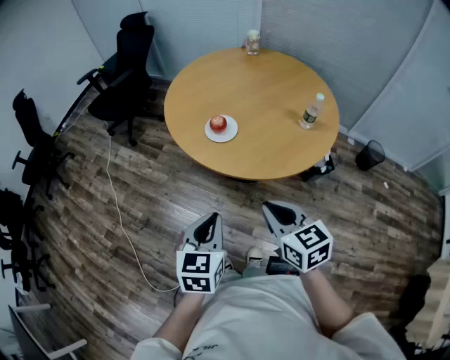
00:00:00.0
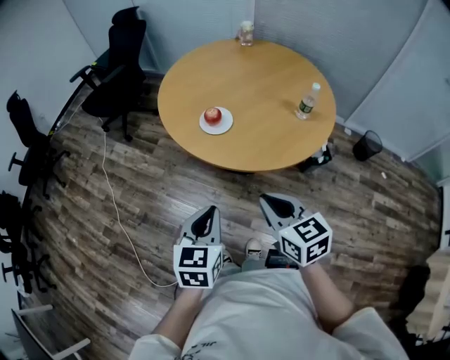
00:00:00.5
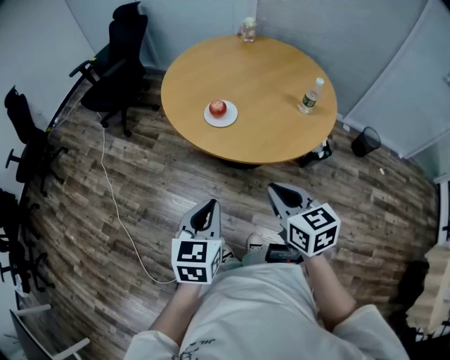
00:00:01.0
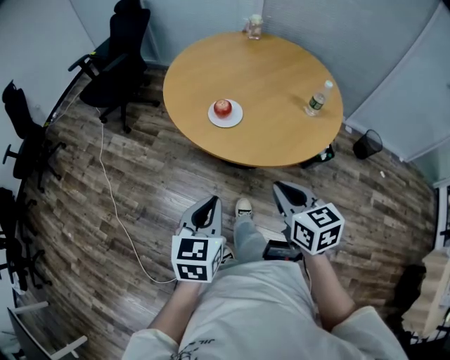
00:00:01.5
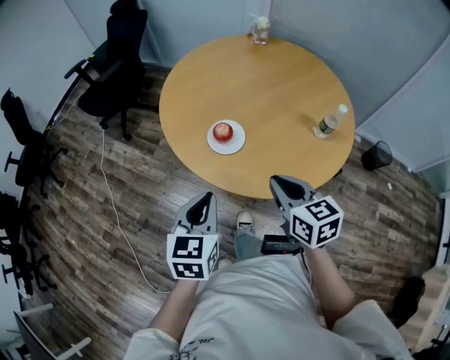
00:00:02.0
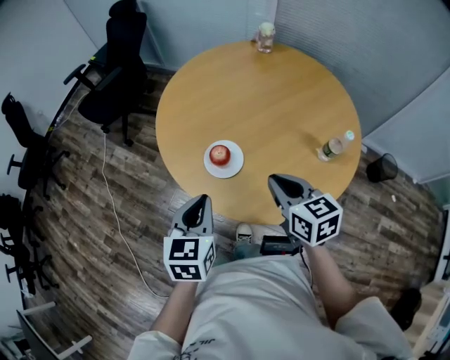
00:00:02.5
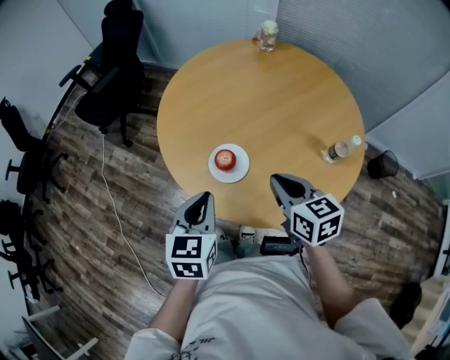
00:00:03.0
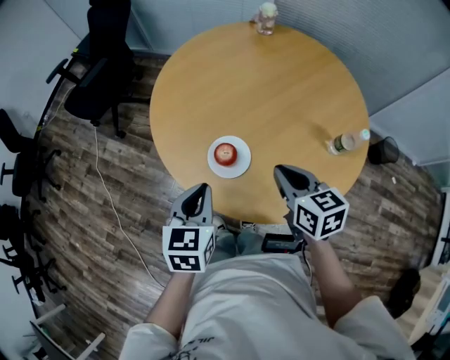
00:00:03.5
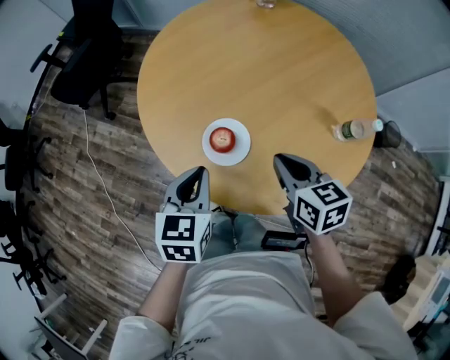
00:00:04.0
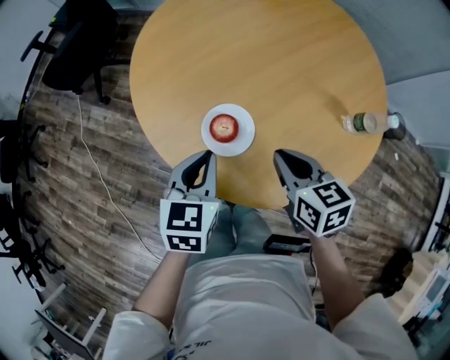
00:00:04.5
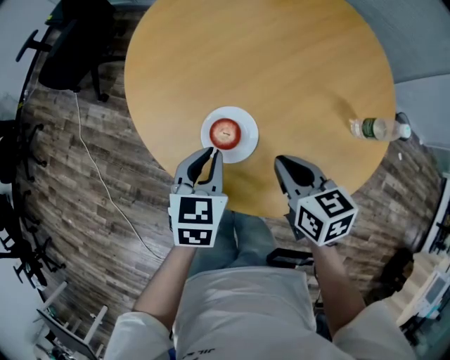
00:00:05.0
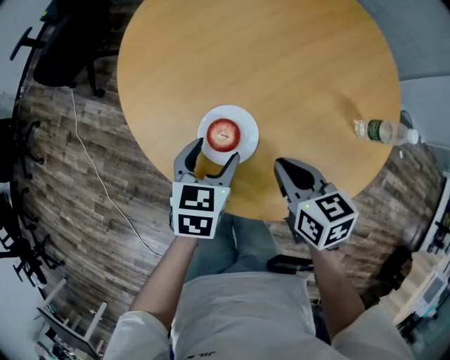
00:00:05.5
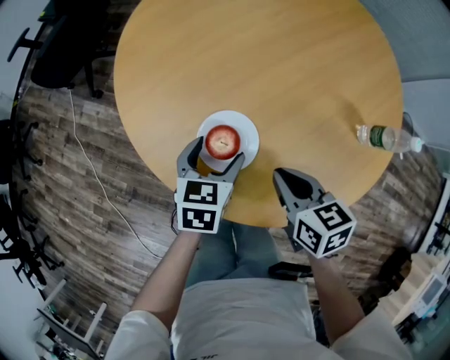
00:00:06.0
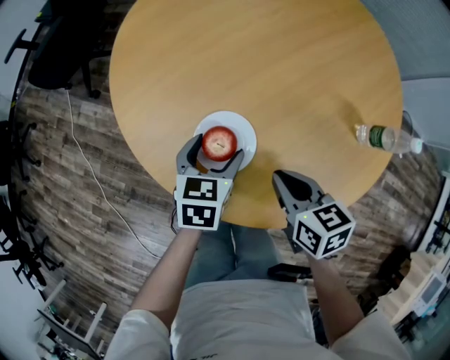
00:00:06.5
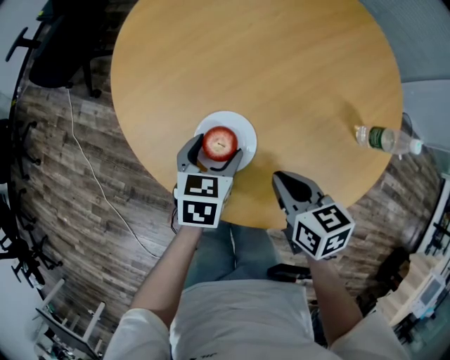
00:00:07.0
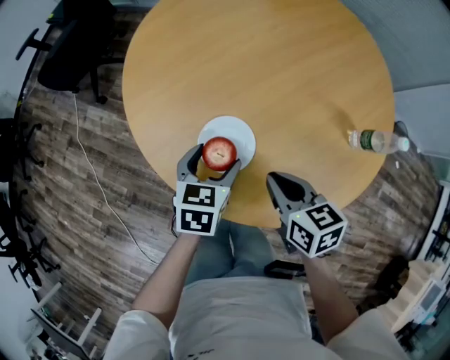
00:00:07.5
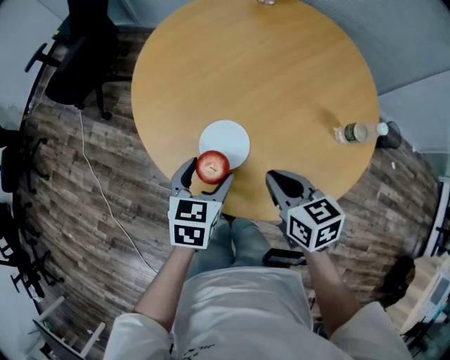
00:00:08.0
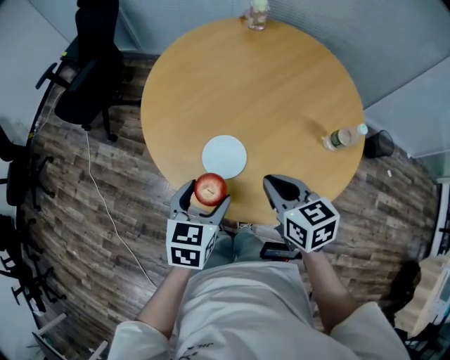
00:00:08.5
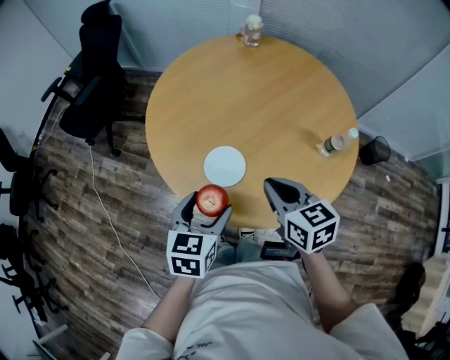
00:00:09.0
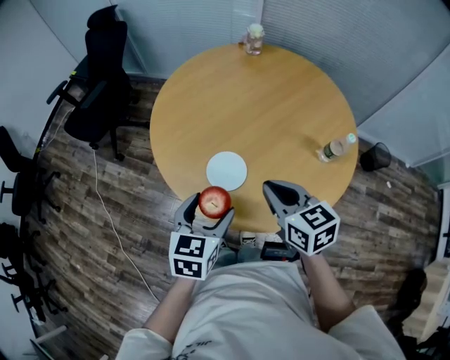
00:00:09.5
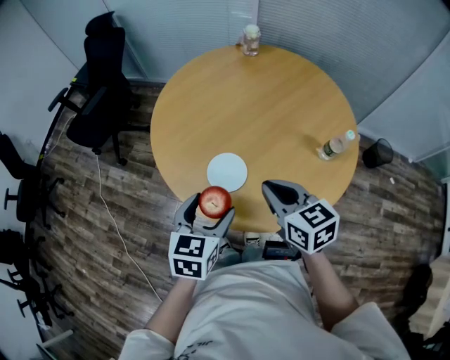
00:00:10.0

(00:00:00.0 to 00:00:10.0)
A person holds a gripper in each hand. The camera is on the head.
00:00:00.0 - 00:00:02.0: Both grippers travel together forward, approximately 15 cm.
00:00:02.0 - 00:00:04.0: The left gripper shifts roughly 15 cm forward. The right gripper goes about 15 cm forward and downward.
00:00:04.0 - 00:00:06.0: The right gripper goes about 10 cm downward. The left gripper goes roughly 15 cm downward and forward, and opens.
00:00:06.0 - 00:00:08.0: Both grippers move upward, about 5 cm.
00:00:08.0 - 00:00:10.0: The right gripper moves upward, approximately 10 cm; the left gripper heads upward and backward, covering about 10 cm.

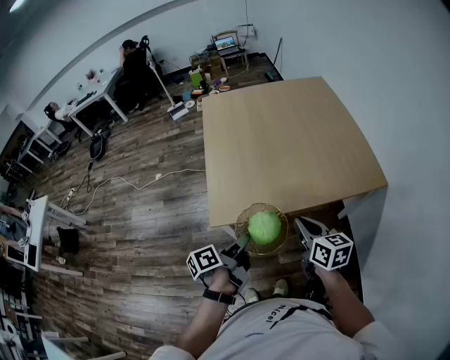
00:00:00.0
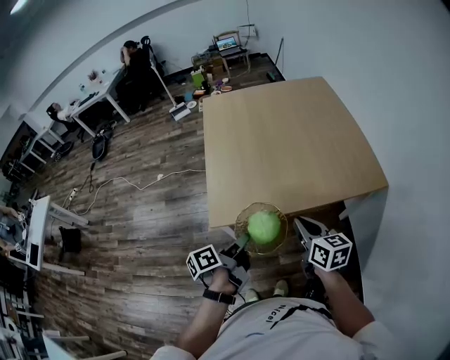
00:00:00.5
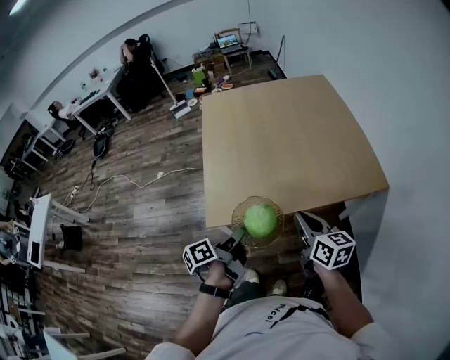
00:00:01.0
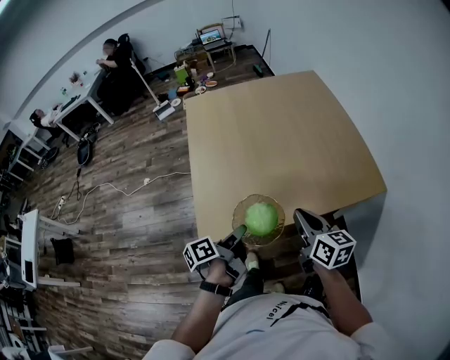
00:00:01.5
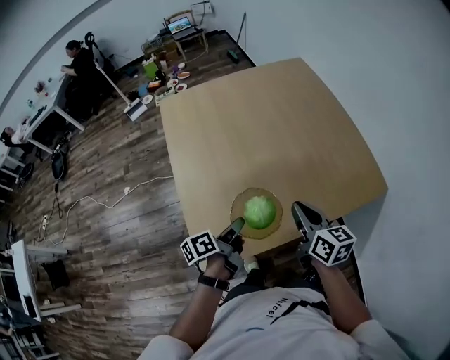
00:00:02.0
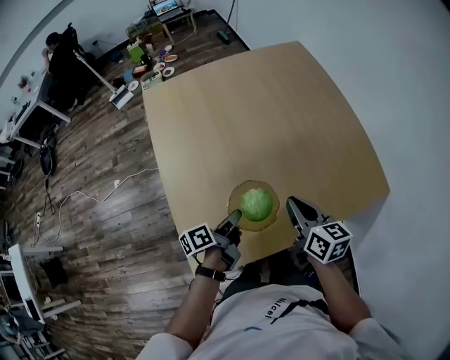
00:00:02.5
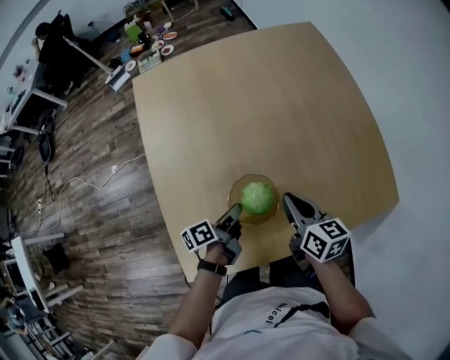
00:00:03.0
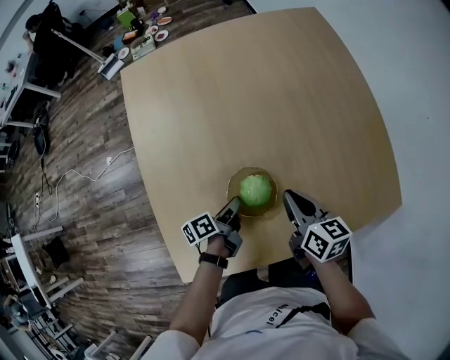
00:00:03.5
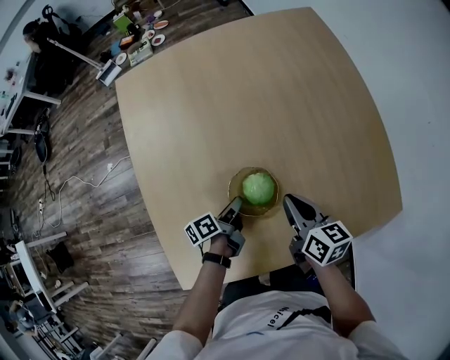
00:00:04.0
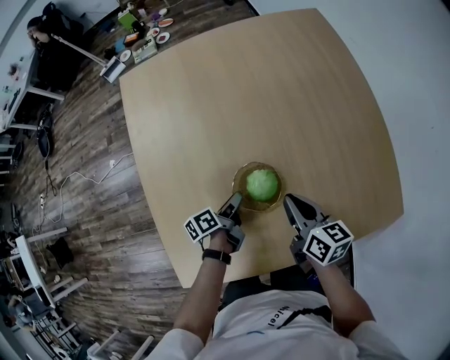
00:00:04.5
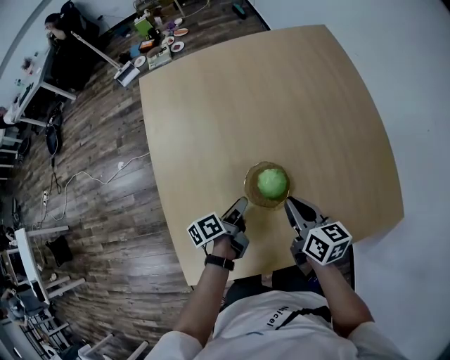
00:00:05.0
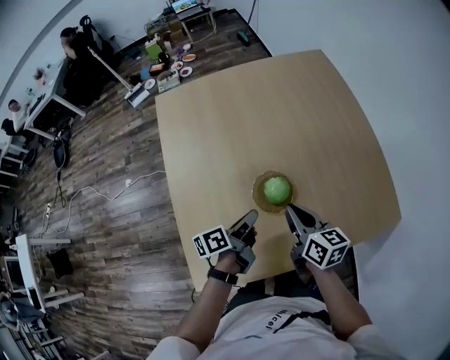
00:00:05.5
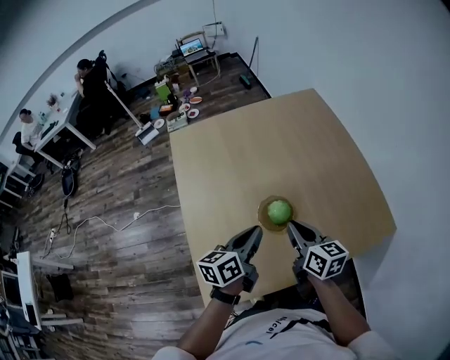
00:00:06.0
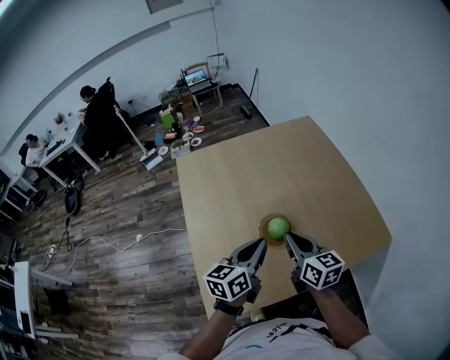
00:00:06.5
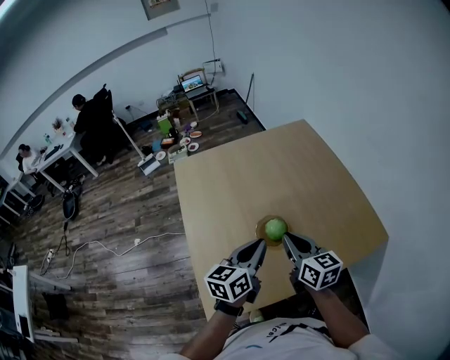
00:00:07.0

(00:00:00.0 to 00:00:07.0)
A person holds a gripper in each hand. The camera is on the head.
00:00:00.0 - 00:00:02.0: The right gripper moves roughly 20 cm.
00:00:02.0 - 00:00:03.5: The right gripper moves approximately 25 cm.
00:00:05.0 - 00:00:07.0: The right gripper travels upward by approximately 15 cm, and rotates about 20 degrees.

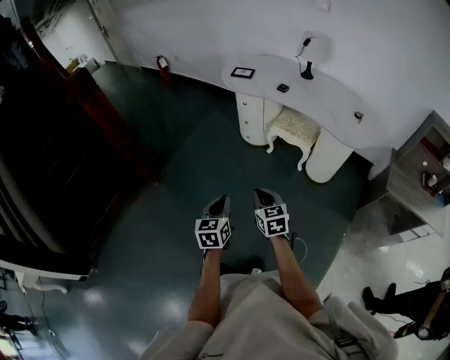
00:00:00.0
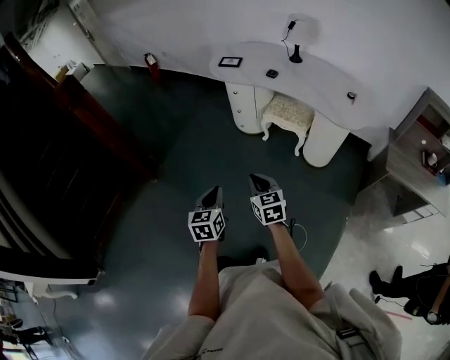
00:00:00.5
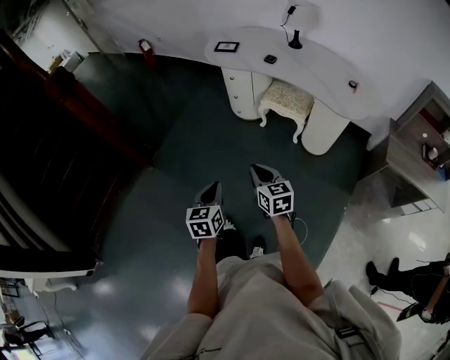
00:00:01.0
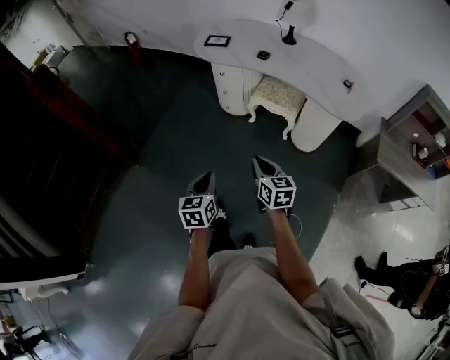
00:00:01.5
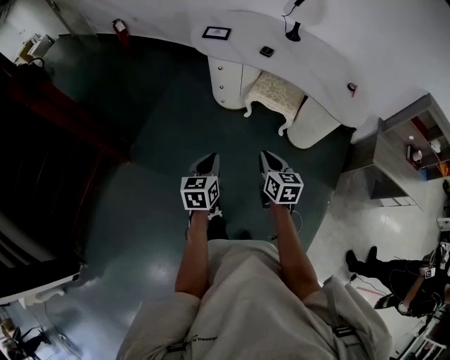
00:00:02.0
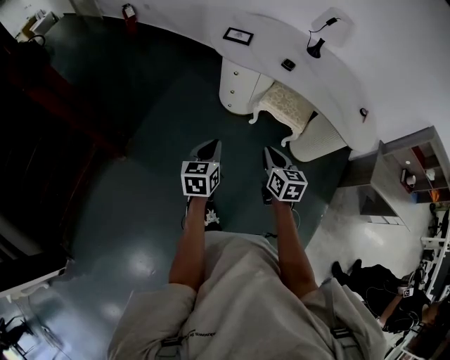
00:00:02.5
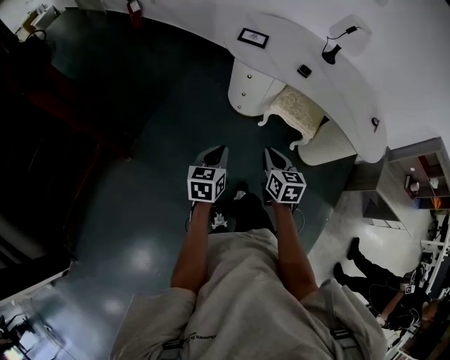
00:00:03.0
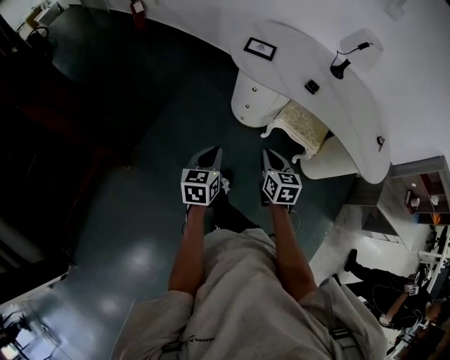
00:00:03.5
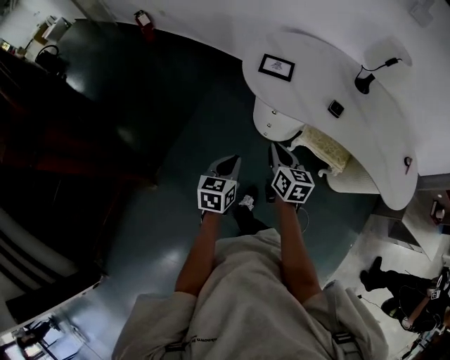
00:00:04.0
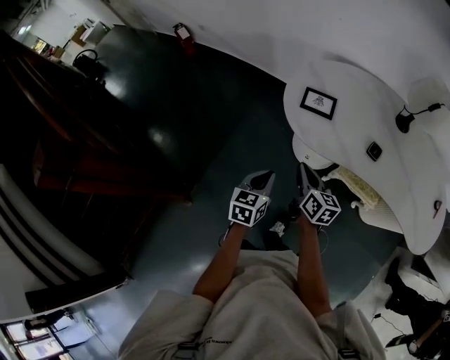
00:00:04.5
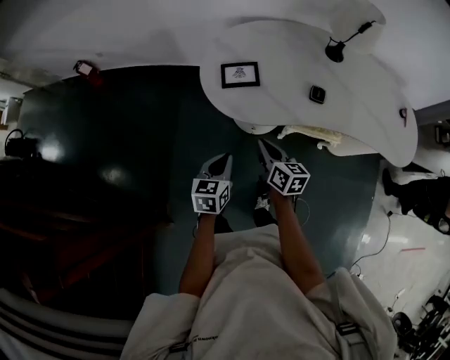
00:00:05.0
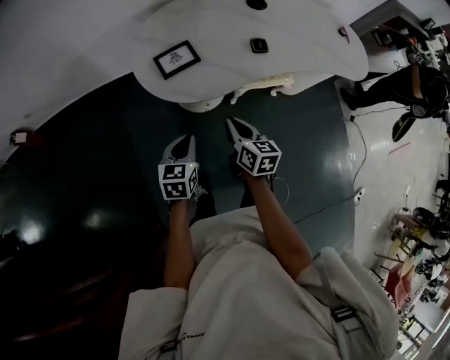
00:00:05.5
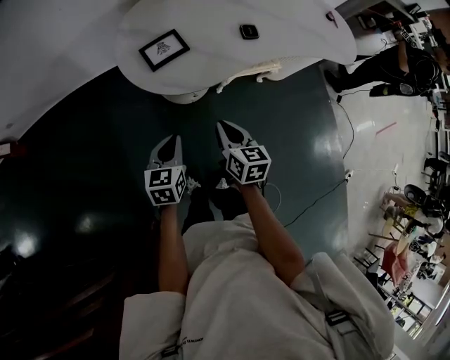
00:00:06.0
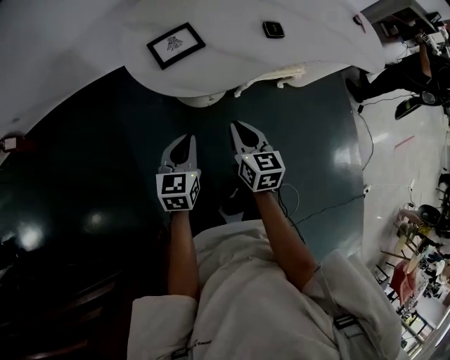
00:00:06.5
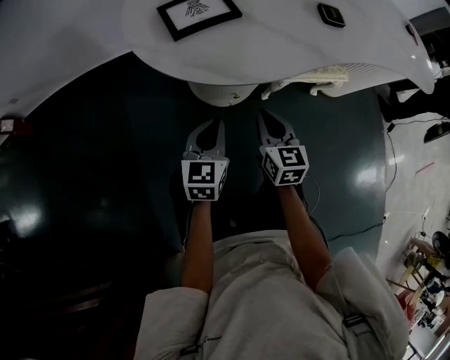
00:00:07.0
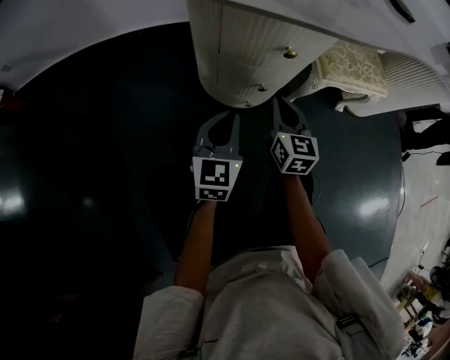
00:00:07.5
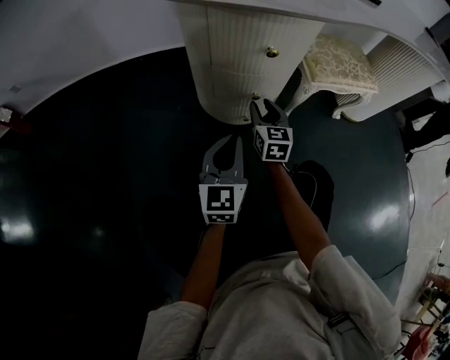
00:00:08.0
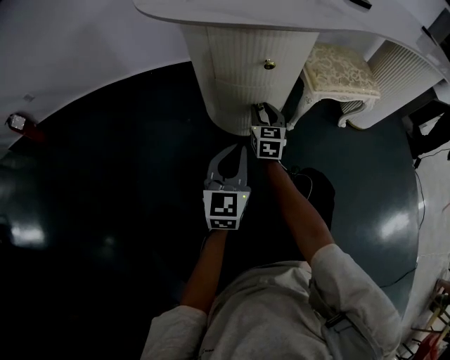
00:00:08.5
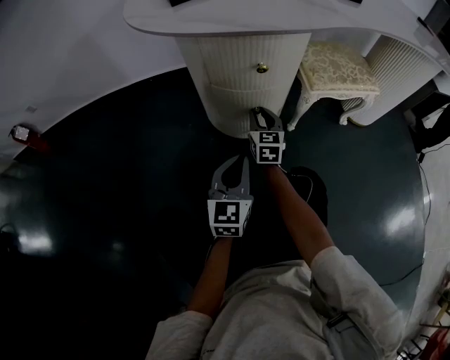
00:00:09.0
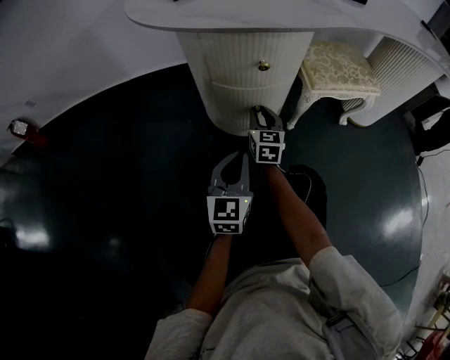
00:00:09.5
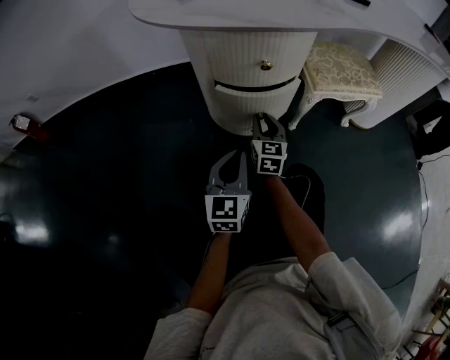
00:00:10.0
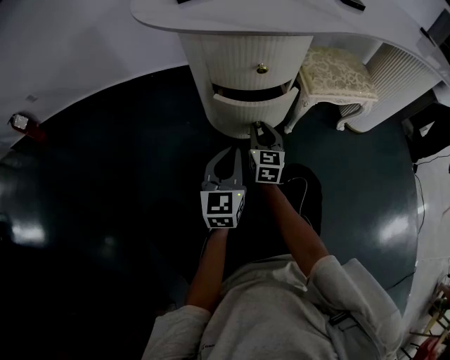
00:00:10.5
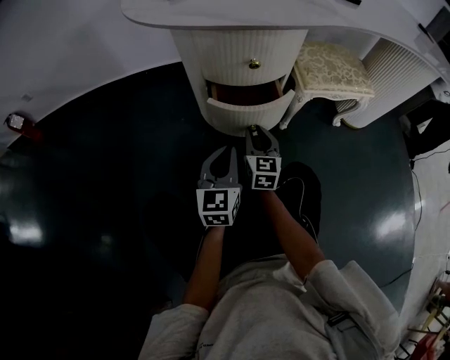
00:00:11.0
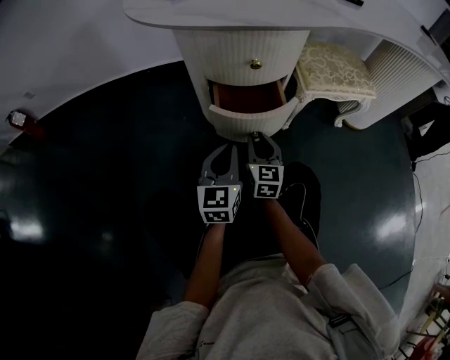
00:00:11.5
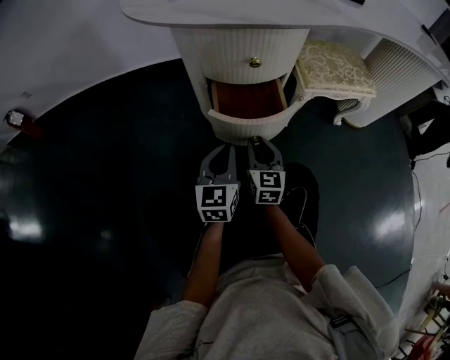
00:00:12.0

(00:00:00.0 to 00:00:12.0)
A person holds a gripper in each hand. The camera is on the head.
00:00:00.0 - 00:00:02.0: The two grippers go approximately 20 cm forward.
00:00:02.0 - 00:00:04.0: The two grippers travel together, forward and to the left, about 40 cm.
00:00:04.0 - 00:00:06.0: The left gripper changes place by approximately 20 cm, and rotates roughly 40 degrees. The right gripper moves approximately 10 cm, and swivels roughly 40 degrees.
00:00:06.0 - 00:00:08.0: Both grippers move downward, about 50 cm. The left gripper changes its angle by approximately 30 degrees, while the right gripper rotates approximately 20 degrees, and opens its fingers.
00:00:08.0 - 00:00:10.0: There are only small adjustments of the grippers.
00:00:10.0 - 00:00:12.0: The right gripper heads backward, covering about 10 cm.
